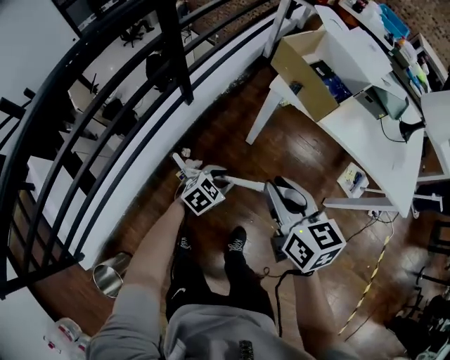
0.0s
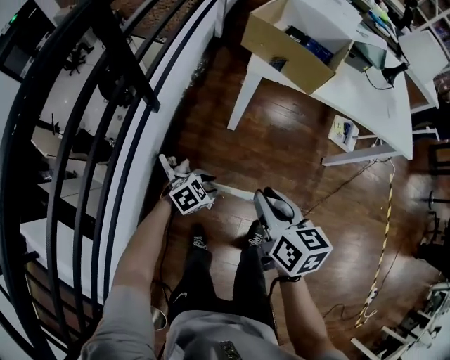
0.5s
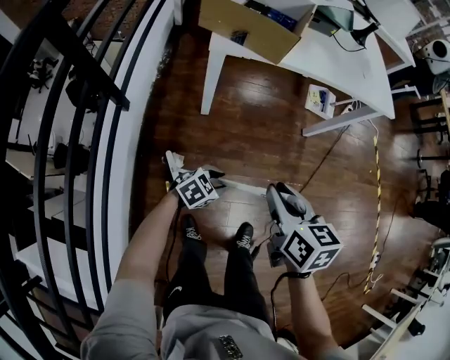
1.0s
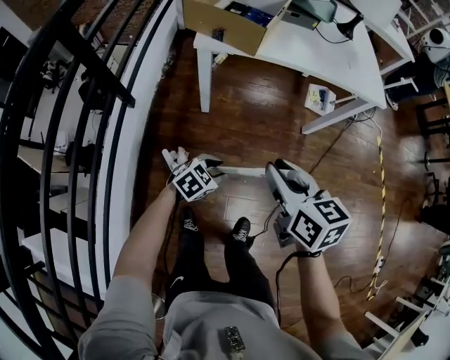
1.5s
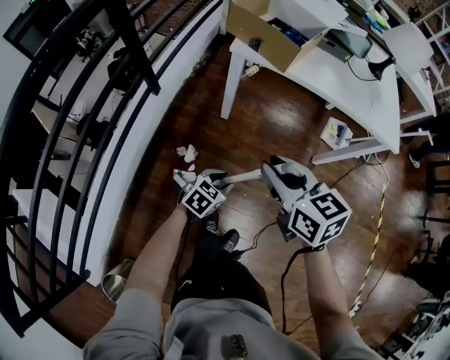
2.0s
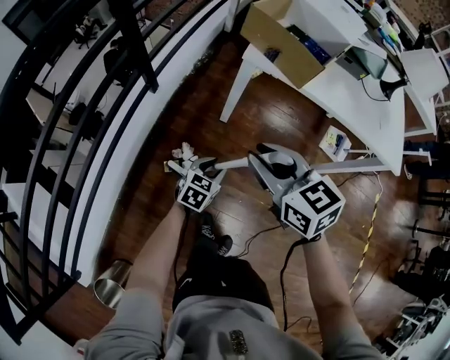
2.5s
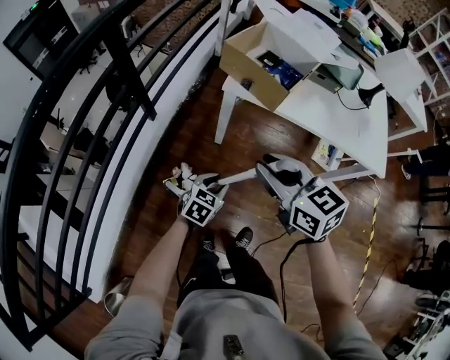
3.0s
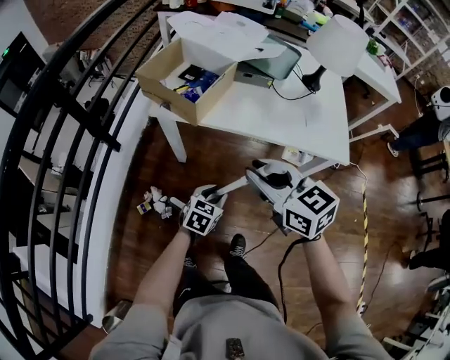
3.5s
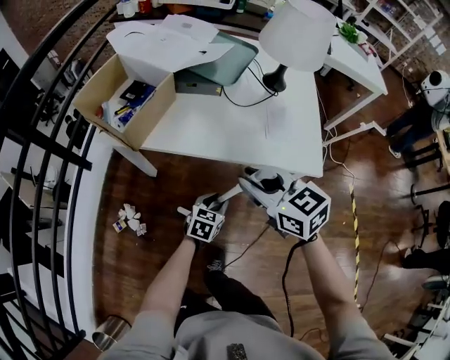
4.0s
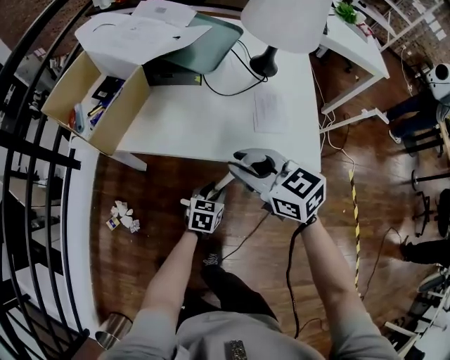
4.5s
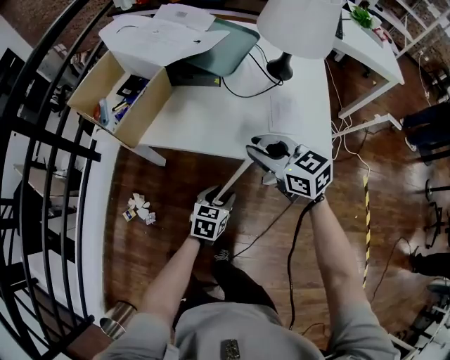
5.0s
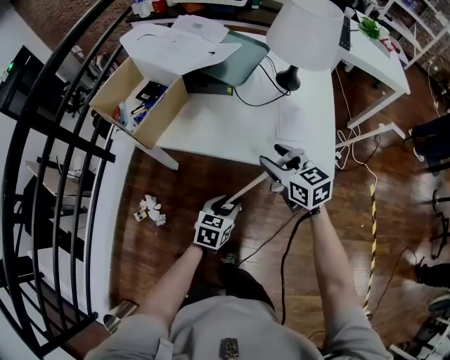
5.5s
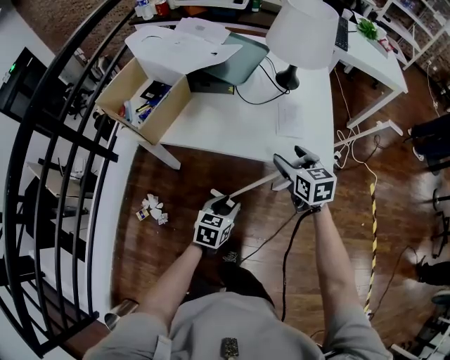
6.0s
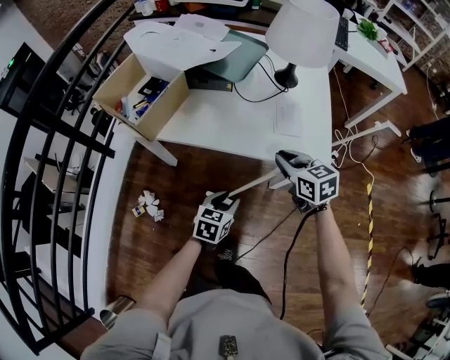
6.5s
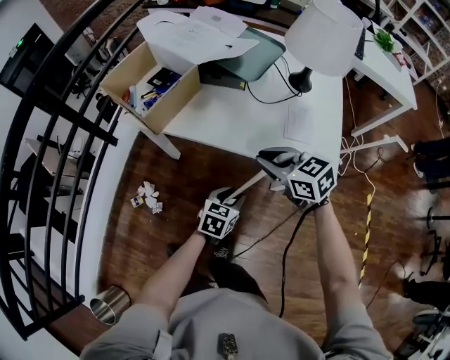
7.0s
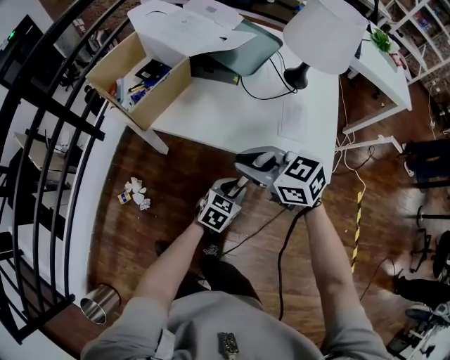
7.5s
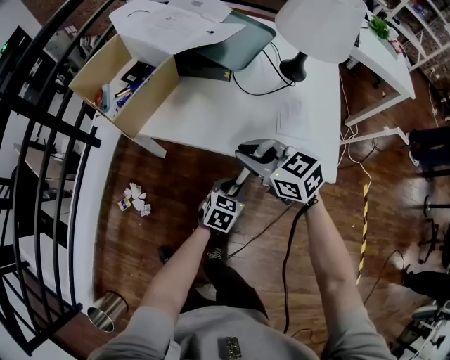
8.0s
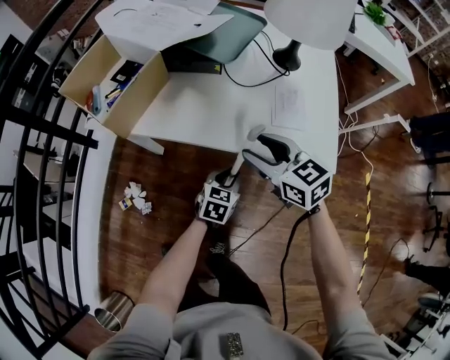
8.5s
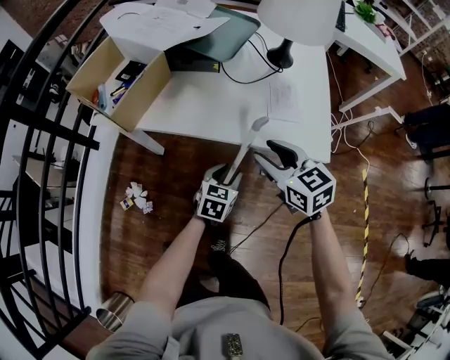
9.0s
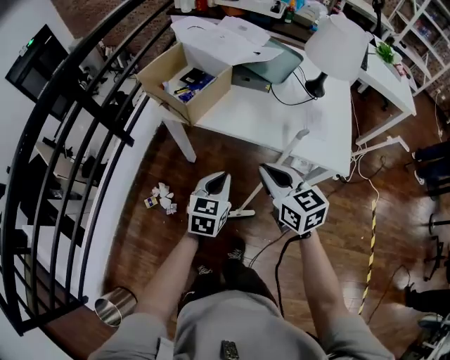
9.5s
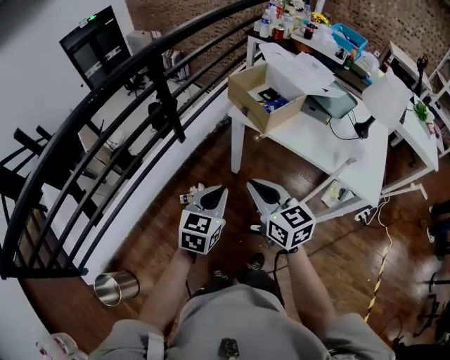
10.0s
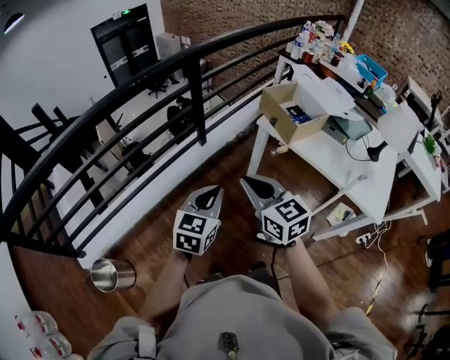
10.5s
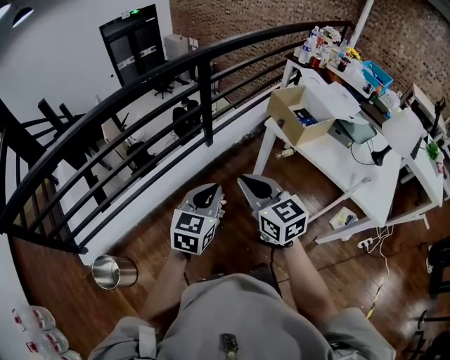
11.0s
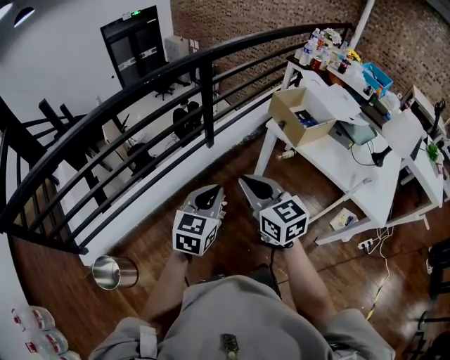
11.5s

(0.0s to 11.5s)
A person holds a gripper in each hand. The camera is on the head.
0.0s - 2.0s: The left gripper reaches approximately 10 cm downward, then returns. Meanwhile the right gripper goes downward and returns, some 10 cm each way.
2.0s - 4.0s: Both grippers move to the right and forward, approximately 40 cm.
4.0s - 6.0s: The right gripper heads to the right, downward and forward, covering approximately 15 cm, swivels roughly 20 degrees, and opens up. Meanwhile the left gripper heads upward, covering approximately 5 cm.
6.0s - 7.5s: The left gripper goes approximately 10 cm to the right and forward; the right gripper travels to the left by approximately 15 cm, changes its angle by some 50 degrees, and closes its fingers.
7.5s - 9.5s: The left gripper goes approximately 20 cm to the left and upward, swivels some 20 degrees, and closes. Meanwhile the right gripper goes roughly 10 cm backward and to the left, turns by about 30 degrees, and opens, then closes once more.
9.5s - 11.5s: The right gripper moves roughly 40 cm, and turns by roughly 30 degrees. The left gripper shifts by approximately 40 cm, and swivels approximately 30 degrees.

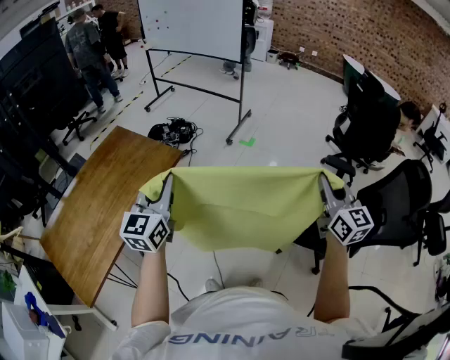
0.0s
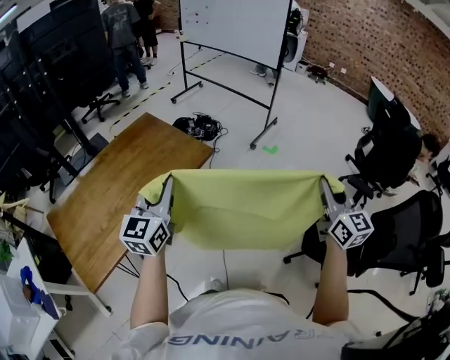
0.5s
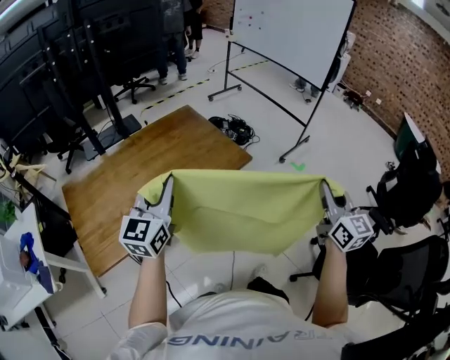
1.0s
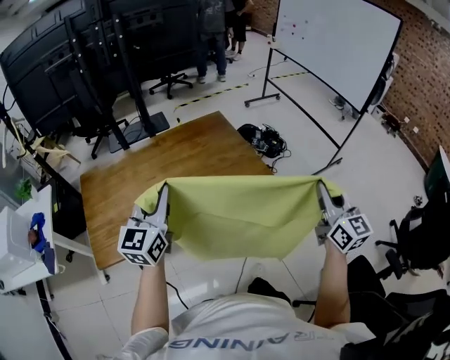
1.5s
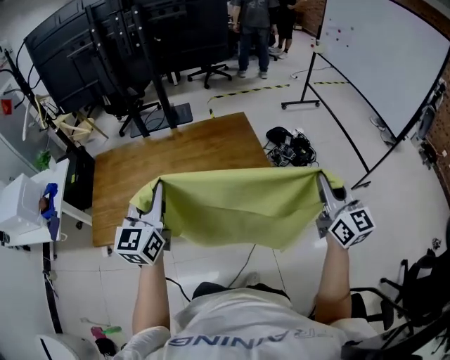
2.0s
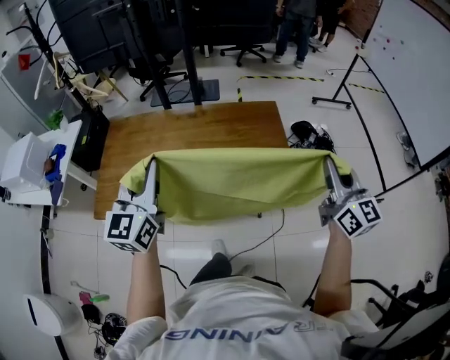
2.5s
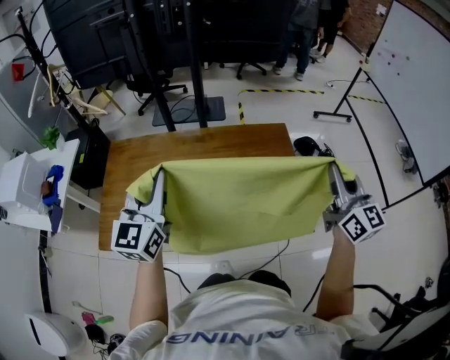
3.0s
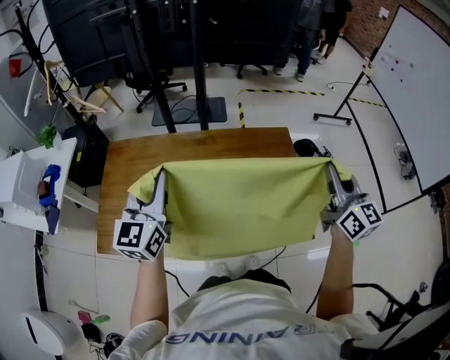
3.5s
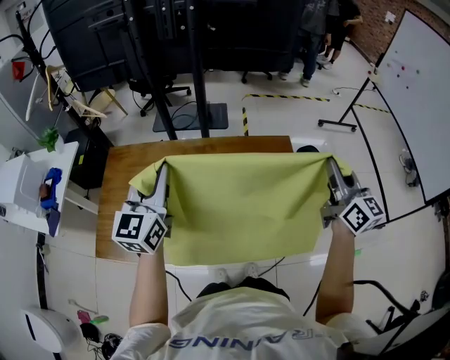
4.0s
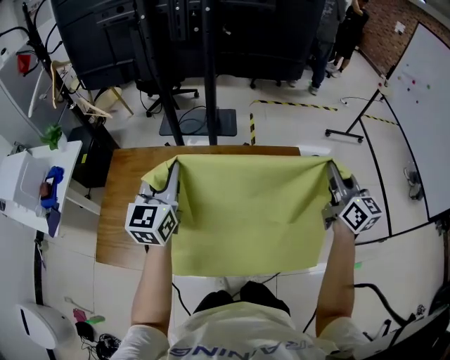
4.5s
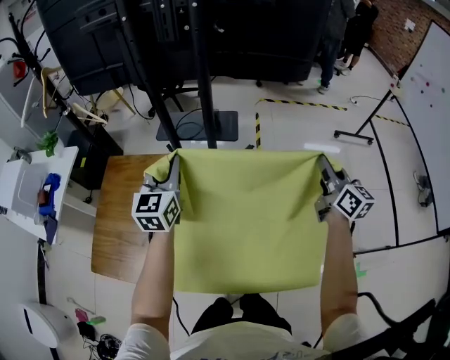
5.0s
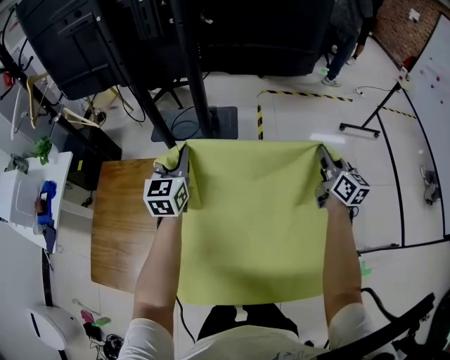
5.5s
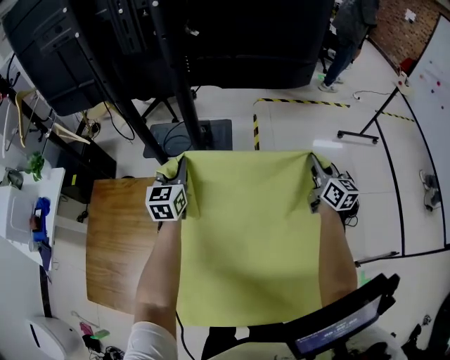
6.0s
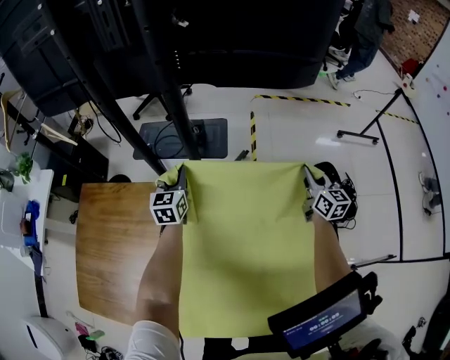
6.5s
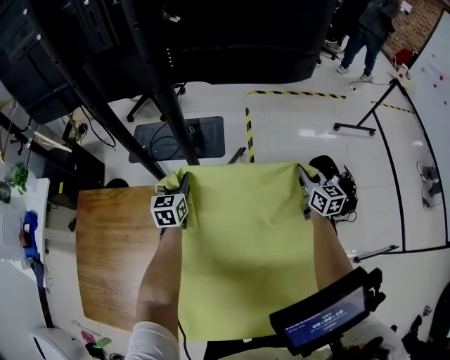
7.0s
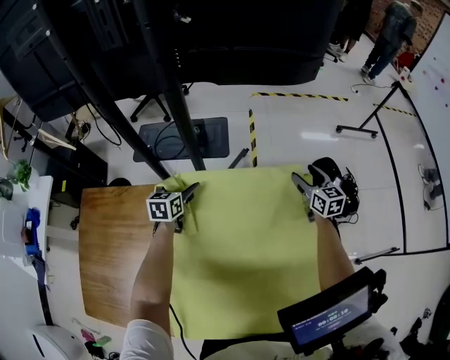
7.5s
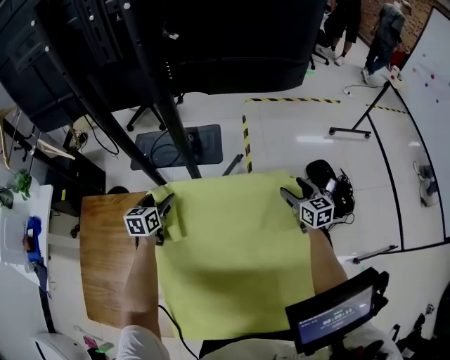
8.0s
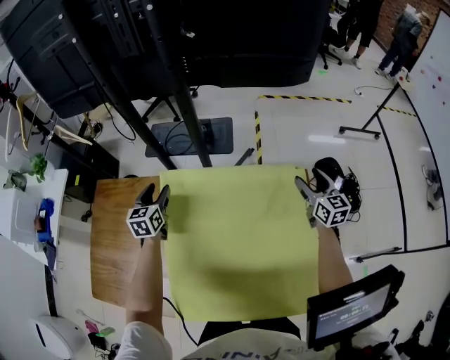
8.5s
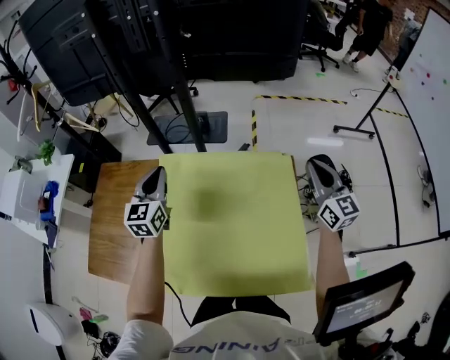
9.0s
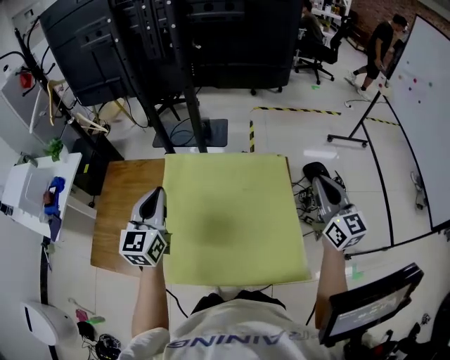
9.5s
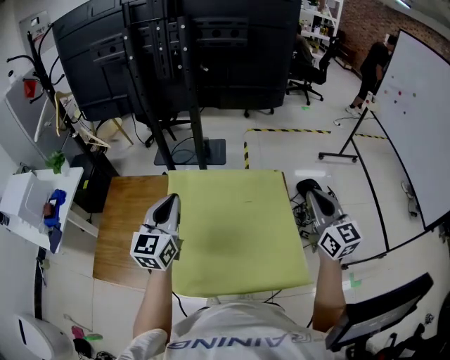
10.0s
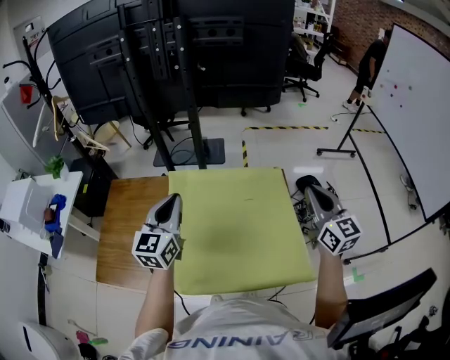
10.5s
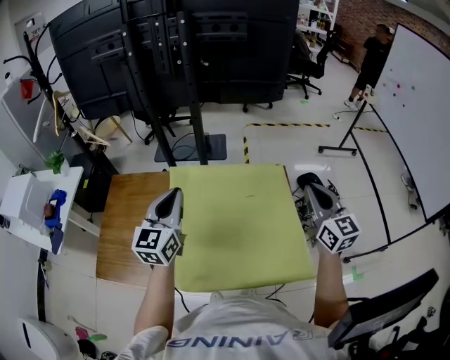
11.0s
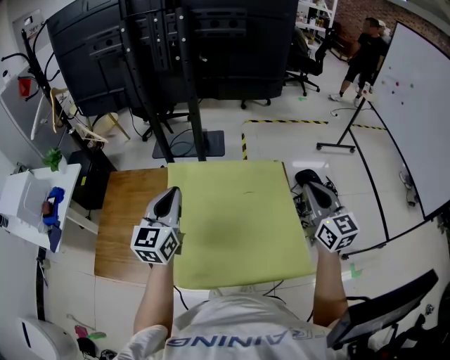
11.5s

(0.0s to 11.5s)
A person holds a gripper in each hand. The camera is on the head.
0.0s - 2.0s: The left gripper changes place by approximately 30 cm, and rotates roughly 50 degrees, while the right gripper shifts by about 50 cm, and swivels about 50 degrees.
2.0s - 4.0s: The two grippers go approximately 25 cm forward.
4.0s - 6.0s: Both grippers move forward and downward, roughly 40 cm.
6.0s - 7.5s: Both grippers move downward, roughly 15 cm. The left gripper turns by about 30 degrees, and opens up. The right gripper opens.
7.5s - 9.5s: The grippers both shift backward and upward by approximately 40 cm. The right gripper turns by some 20 degrees, and closes up. The left gripper turns by about 30 degrees, and closes up.
9.5s - 11.5s: The right gripper travels to the left by roughly 5 cm.

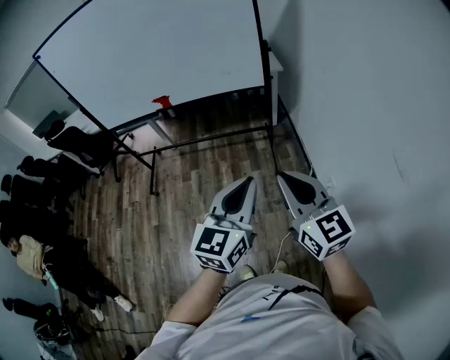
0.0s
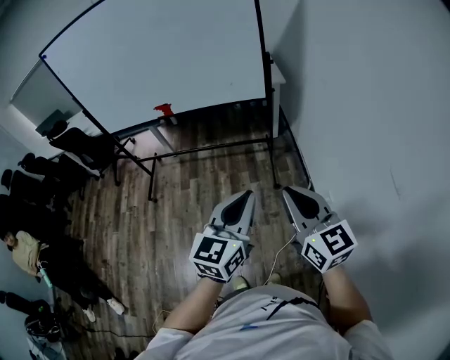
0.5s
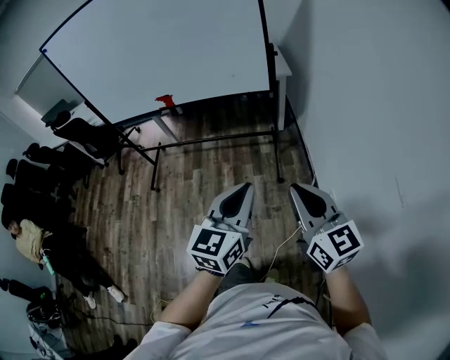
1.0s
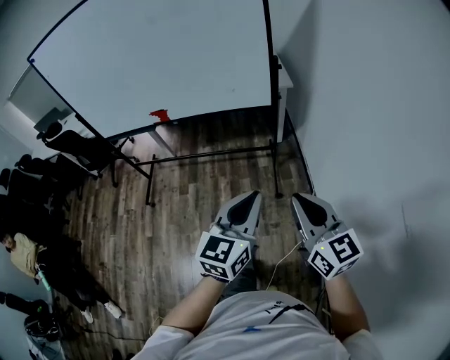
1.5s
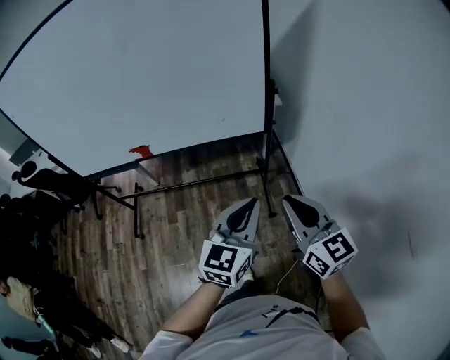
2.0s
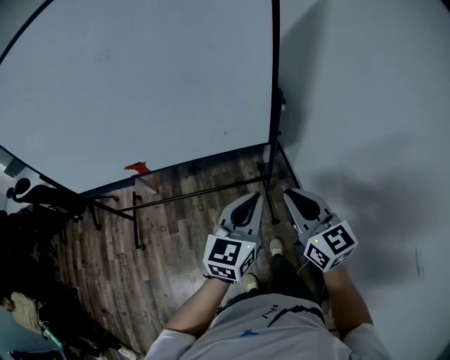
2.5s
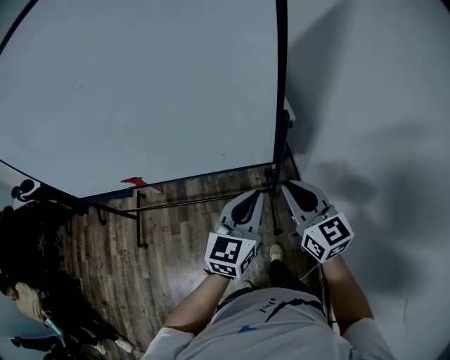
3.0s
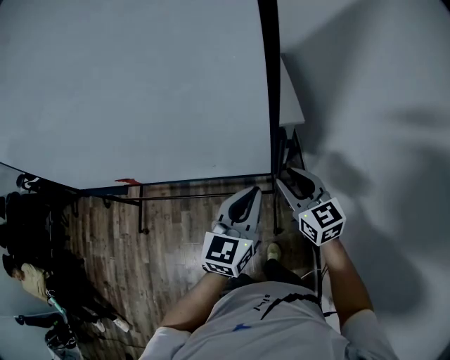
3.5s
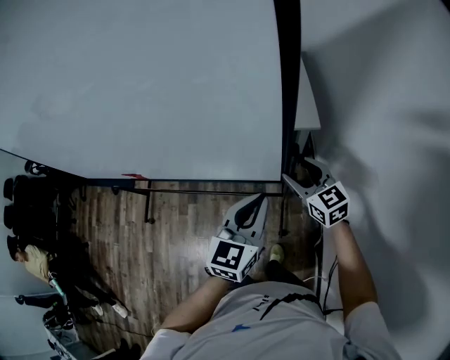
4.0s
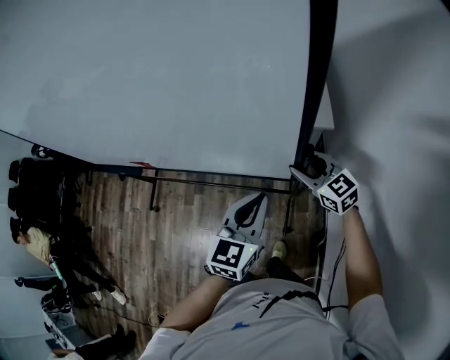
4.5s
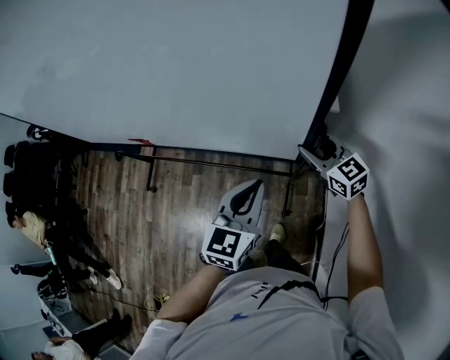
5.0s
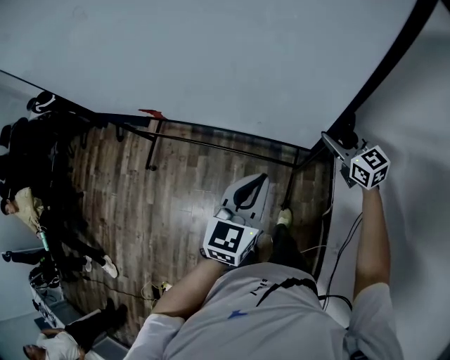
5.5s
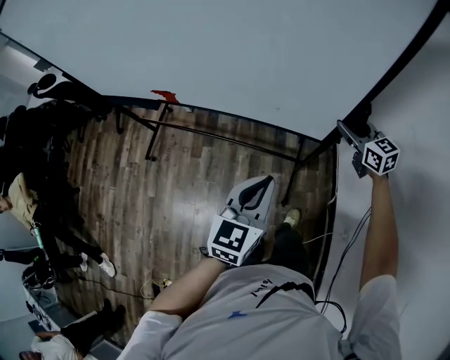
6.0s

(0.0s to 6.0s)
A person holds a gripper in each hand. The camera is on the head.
0.0s - 2.0s: Both grippers move forward, roughly 30 cm.
2.0s - 4.0s: The grippers both shift forward by approximately 40 cm. The right gripper swivels roughly 20 degrees, and opens.
4.0s - 6.0s: The left gripper goes some 30 cm to the left and backward. The right gripper travels backward and to the left by approximately 15 cm.
